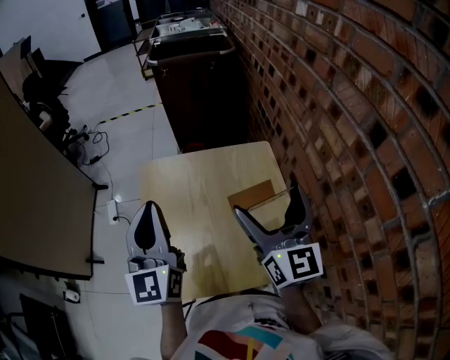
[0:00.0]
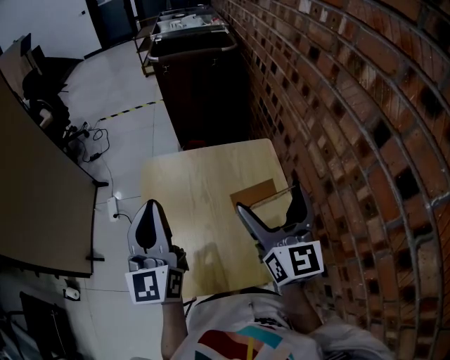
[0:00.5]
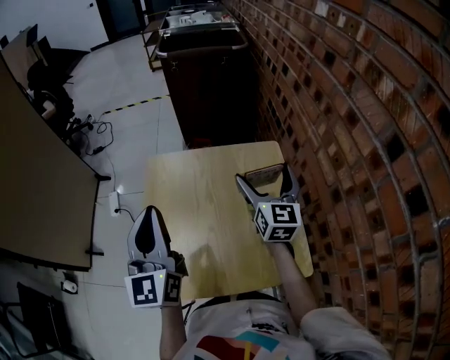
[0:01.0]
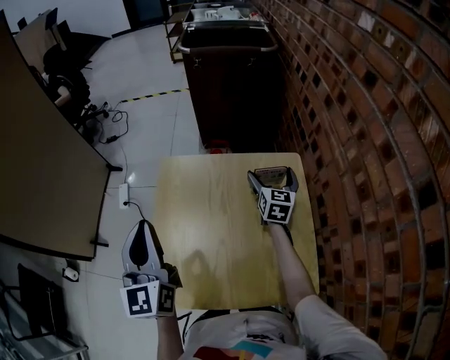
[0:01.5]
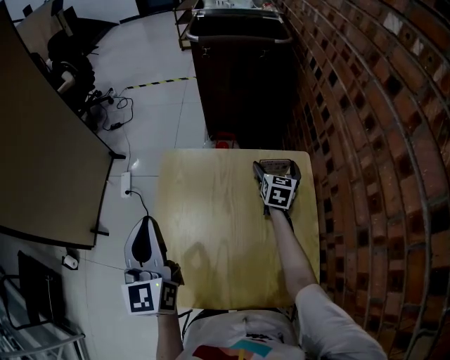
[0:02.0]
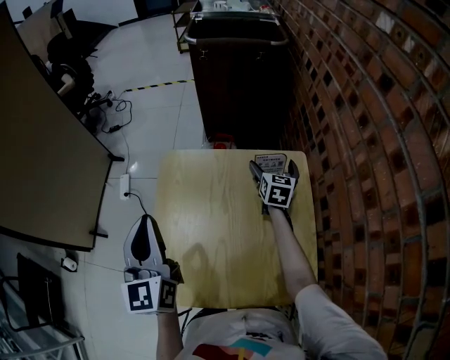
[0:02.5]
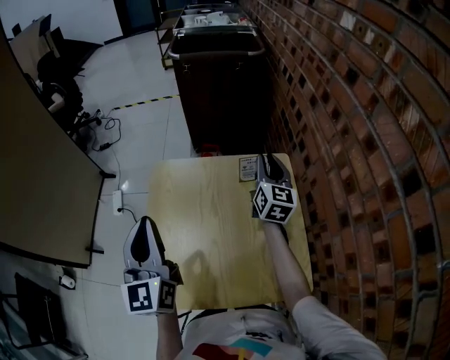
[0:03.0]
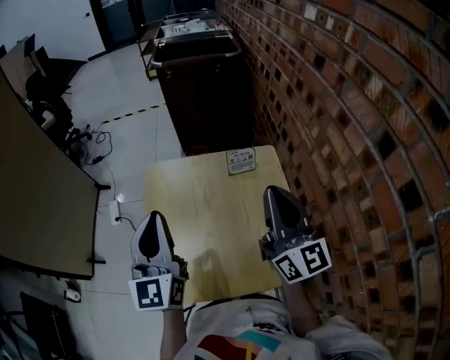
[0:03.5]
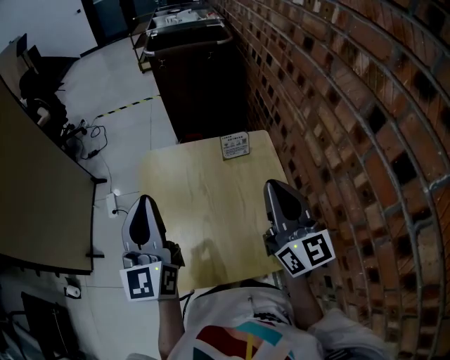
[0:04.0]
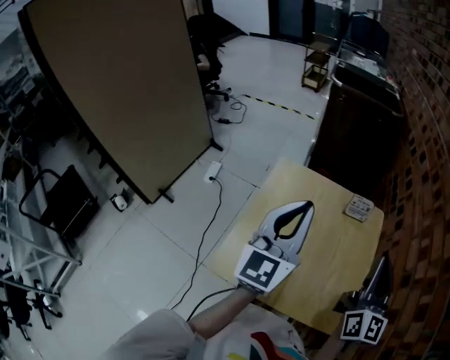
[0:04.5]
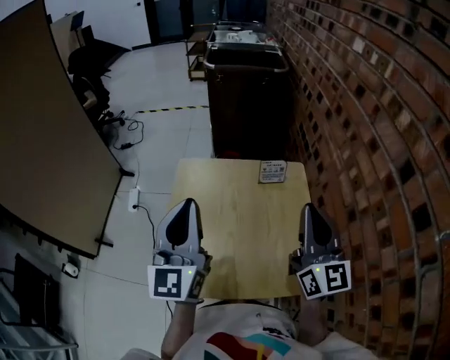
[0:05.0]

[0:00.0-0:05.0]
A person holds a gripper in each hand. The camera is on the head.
0:00.0 to 0:02.5: The left gripper travels to the left and downward by about 10 cm. Meanwhile the right gripper goes some 40 cm forward and downward, and angles its fingers downward, by approximately 30 degrees.
0:02.5 to 0:05.0: The right gripper shifts about 40 cm backward and upward, tips its fingers upward by roughly 40 degrees, and closes up, while the left gripper is displaced backward, upward and to the right by some 10 cm.

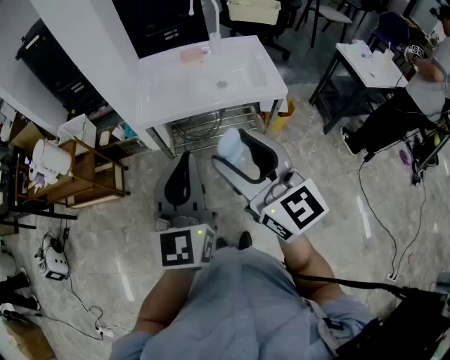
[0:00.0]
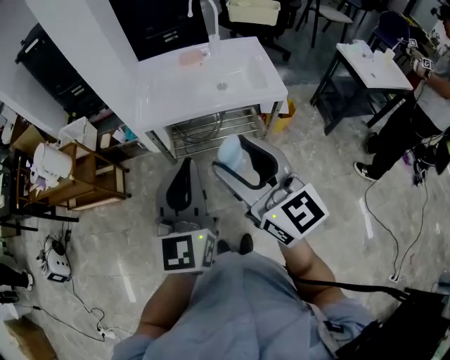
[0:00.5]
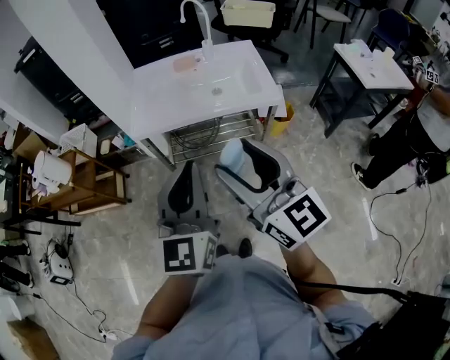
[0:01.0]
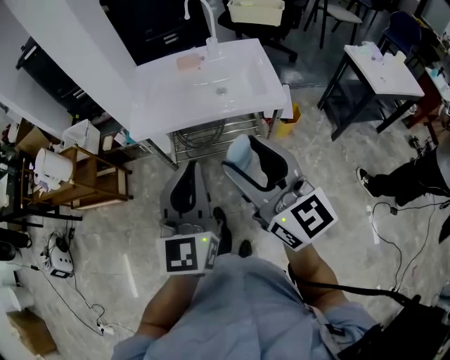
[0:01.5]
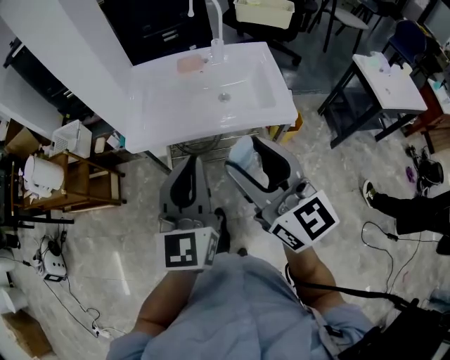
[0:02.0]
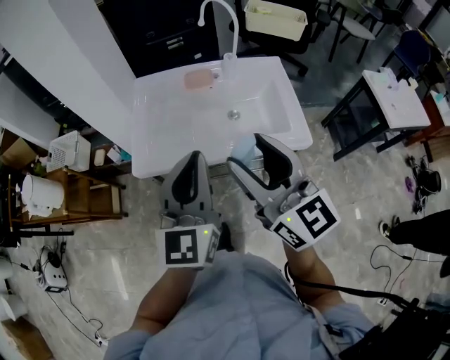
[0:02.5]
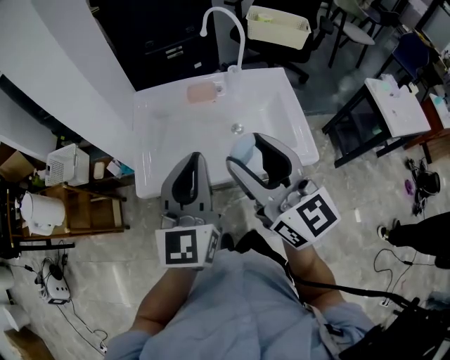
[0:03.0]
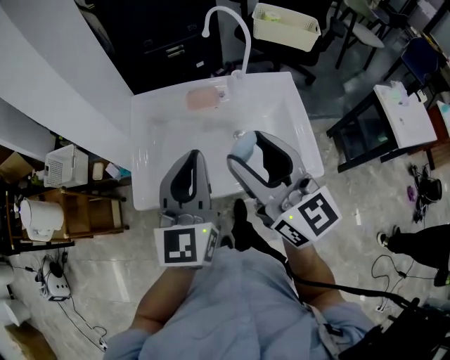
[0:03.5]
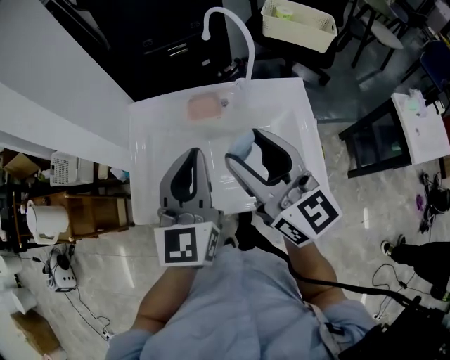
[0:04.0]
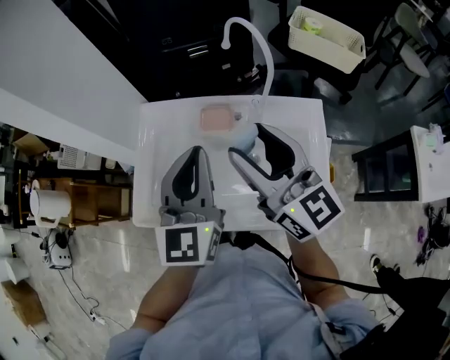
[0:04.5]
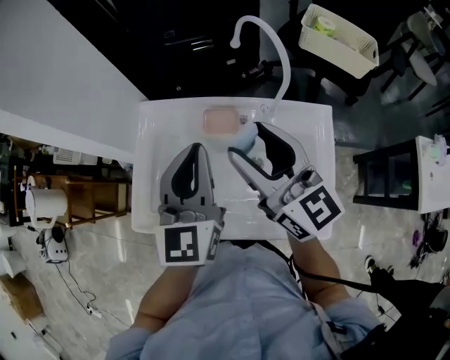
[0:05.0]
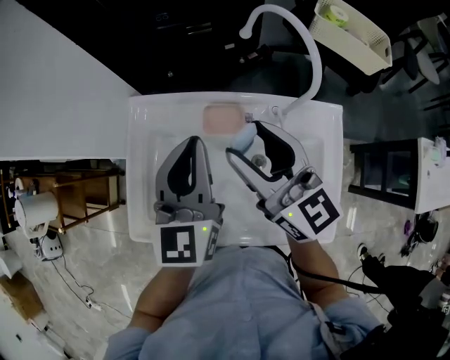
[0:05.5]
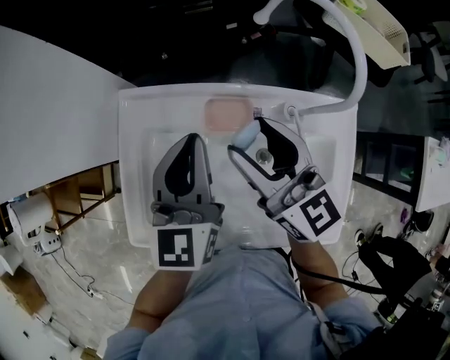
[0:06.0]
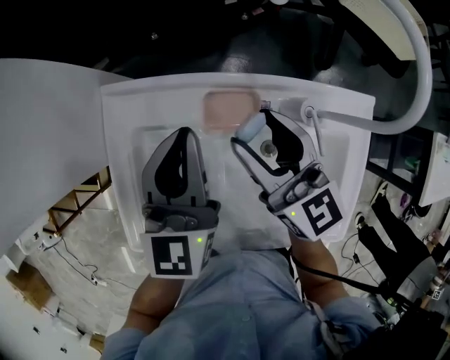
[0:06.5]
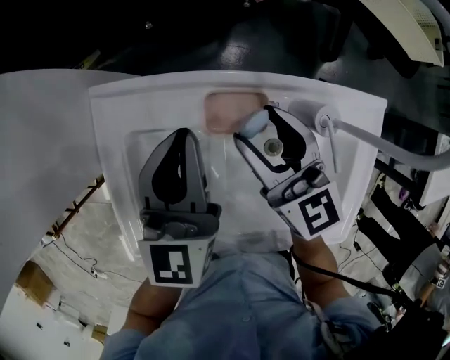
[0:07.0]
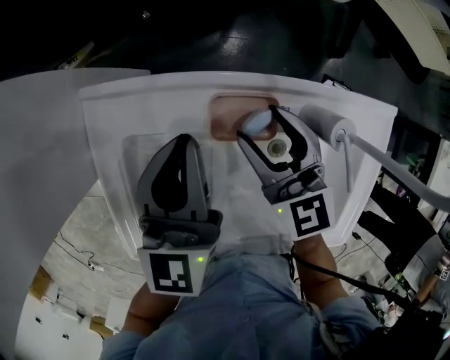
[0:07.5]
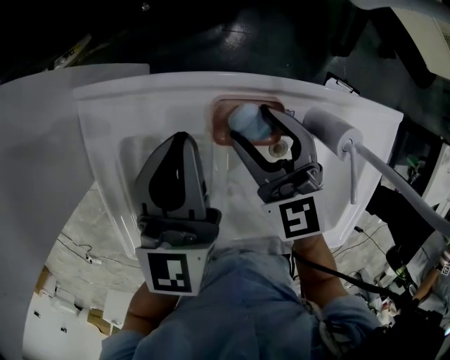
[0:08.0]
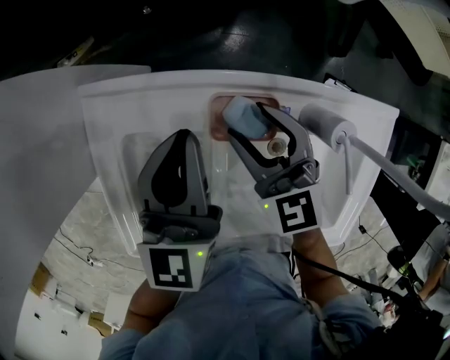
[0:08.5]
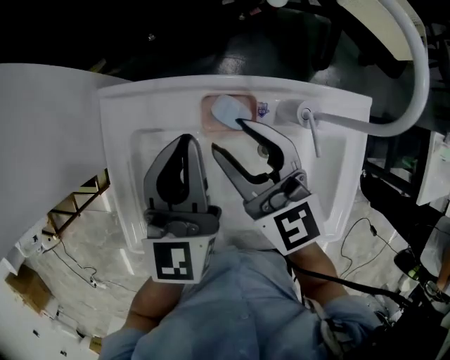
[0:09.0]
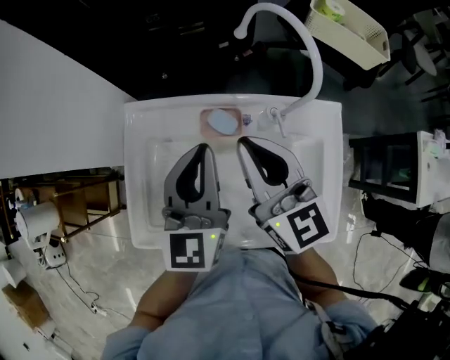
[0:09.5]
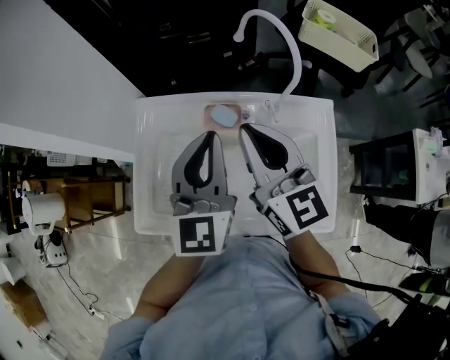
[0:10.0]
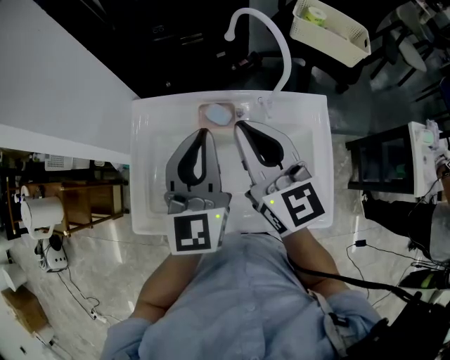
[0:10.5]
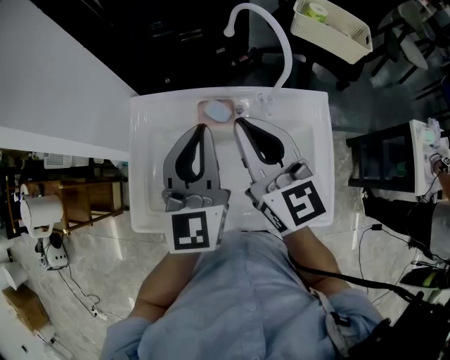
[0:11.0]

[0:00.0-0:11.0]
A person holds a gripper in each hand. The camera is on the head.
0:00.0 to 0:02.0: Both grippers travel together forward and to the right, roughly 15 cm.
0:02.0 to 0:03.5: Both grippers travel together forward, roughly 25 cm.
0:03.5 to 0:05.5: Both grippers move forward, some 25 cm.
0:05.5 to 0:07.5: Both grippers travel together downward and forward, roughly 20 cm. The right gripper changes its angle by about 20 degrees.
0:07.5 to 0:09.0: The right gripper goes about 10 cm upward. Meanwhile the left gripper moves upward, about 5 cm.
0:09.0 to 0:11.0: Both grippers travel together upward and backward, about 15 cm. The right gripper closes its fingers.

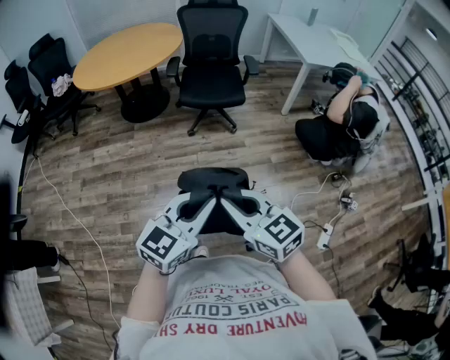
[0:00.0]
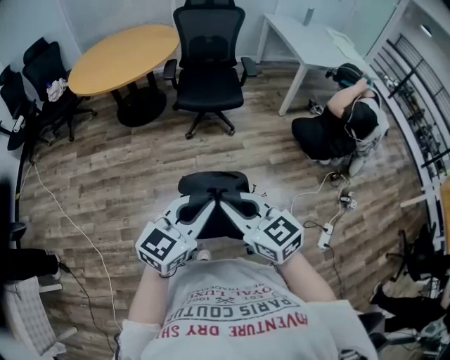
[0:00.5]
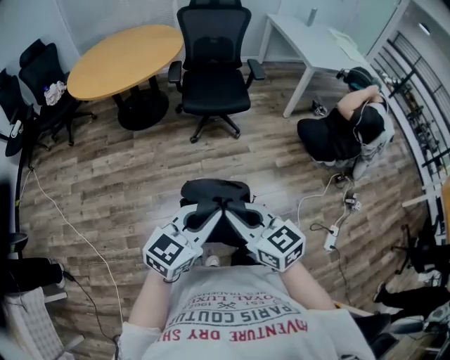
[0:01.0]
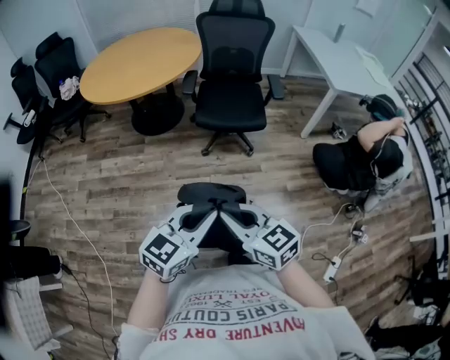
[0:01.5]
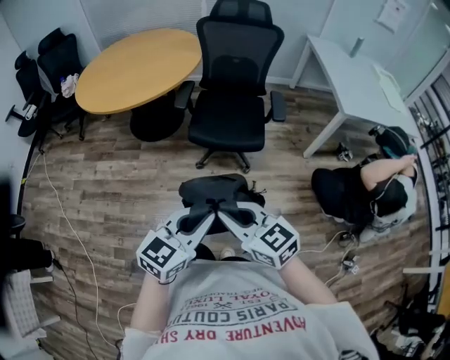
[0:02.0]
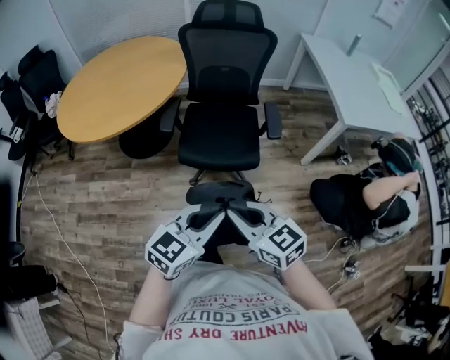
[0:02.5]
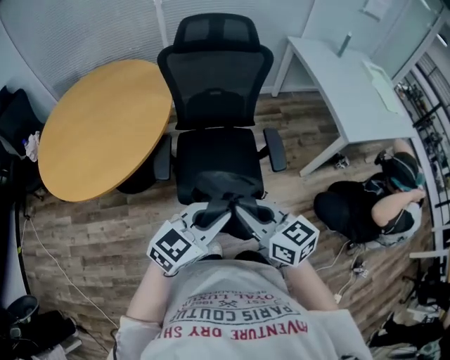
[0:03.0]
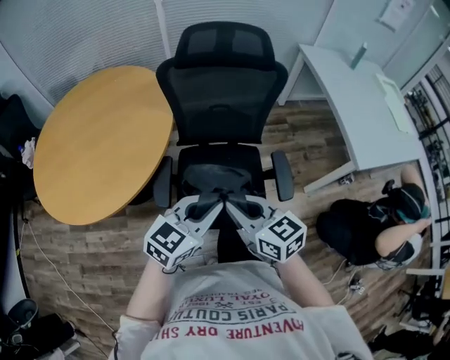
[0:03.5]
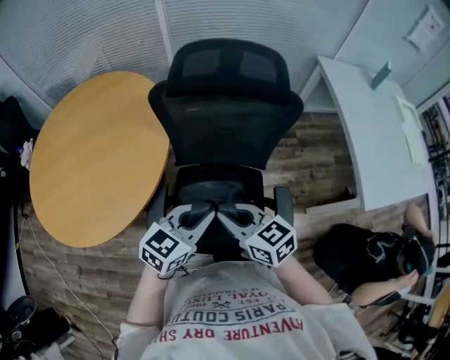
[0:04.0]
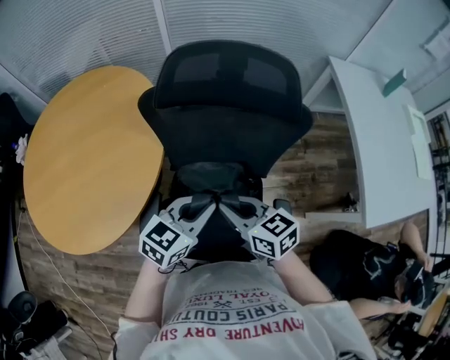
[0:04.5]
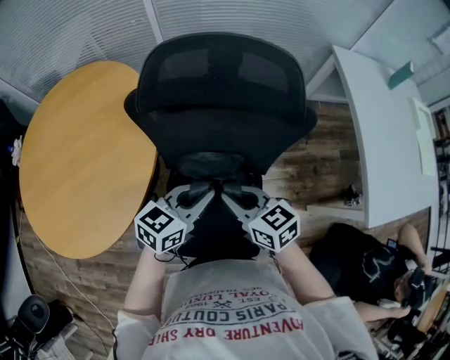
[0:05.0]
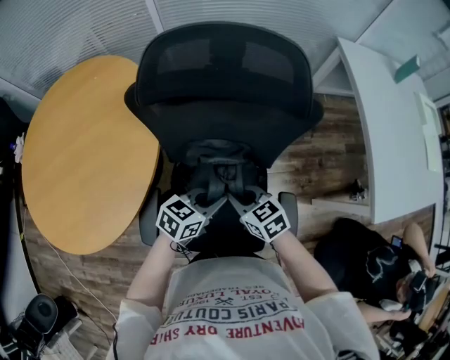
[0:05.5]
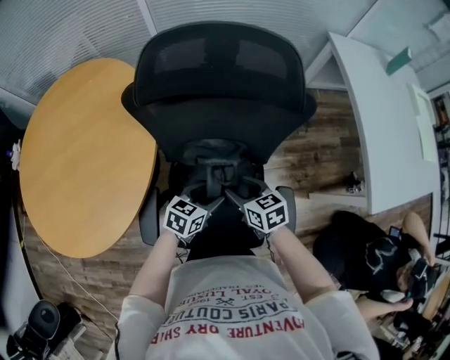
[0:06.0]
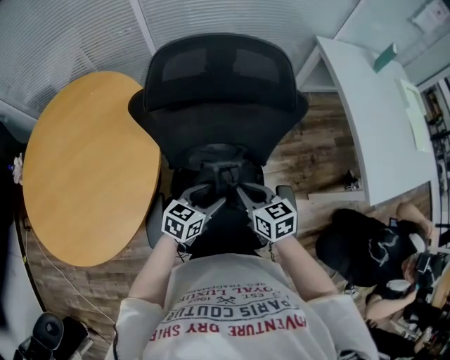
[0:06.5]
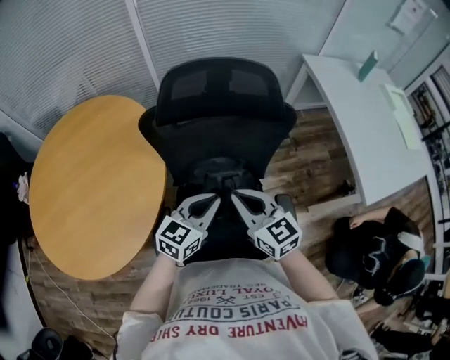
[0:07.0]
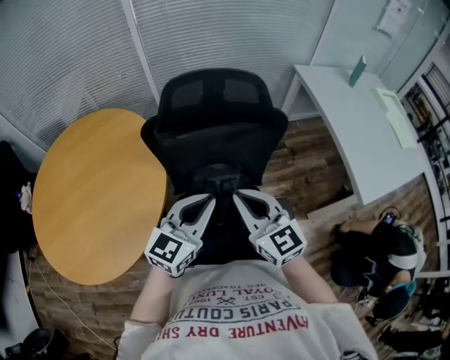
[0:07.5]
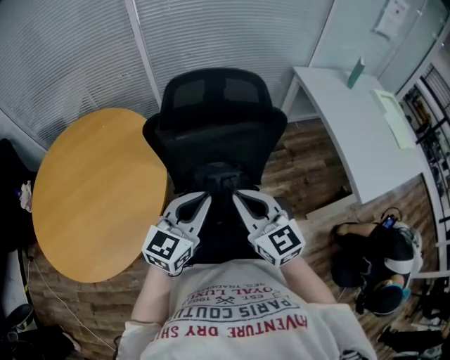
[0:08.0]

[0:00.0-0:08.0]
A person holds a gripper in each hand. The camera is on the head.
0:00.0 to 0:02.0: The two grippers go some 30 cm forward.
0:02.0 to 0:04.0: The two grippers travel together, forward, about 60 cm.
0:04.0 to 0:06.0: The grippers both shift downward and forward by about 20 cm. The left gripper swivels roughly 20 degrees, and opens. Meanwhile the right gripper rotates approximately 20 degrees, and opens.
0:06.0 to 0:08.0: The grippers both shift upward by about 25 cm. The left gripper swivels about 40 degrees, and closes up. Meanwhile the right gripper tips its fingers upward by approximately 30 degrees, and closes its fingers.

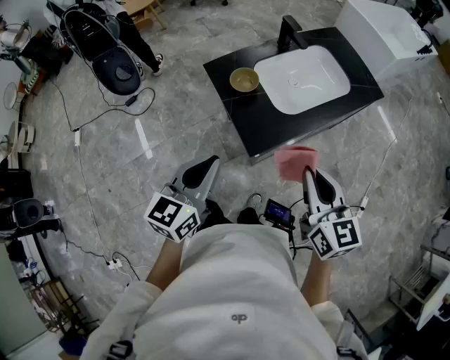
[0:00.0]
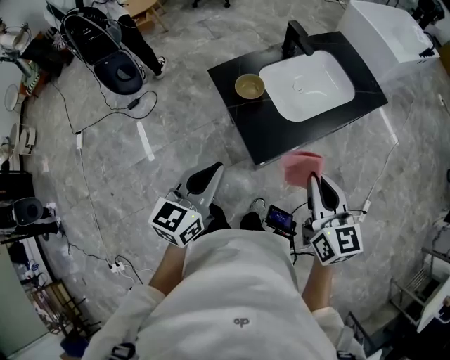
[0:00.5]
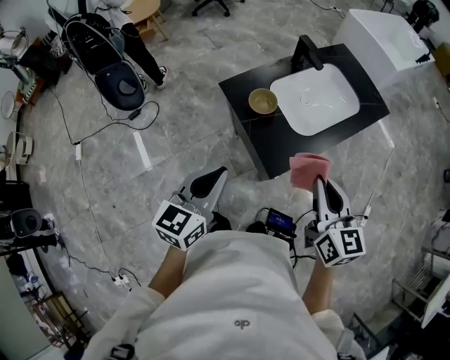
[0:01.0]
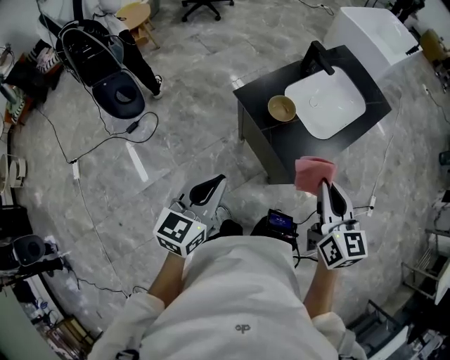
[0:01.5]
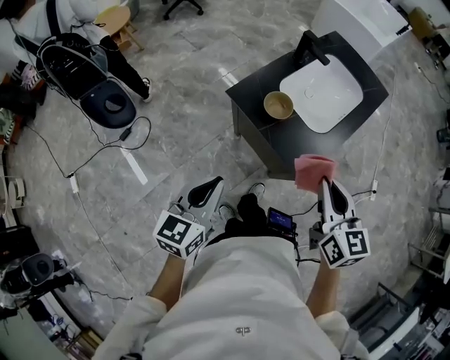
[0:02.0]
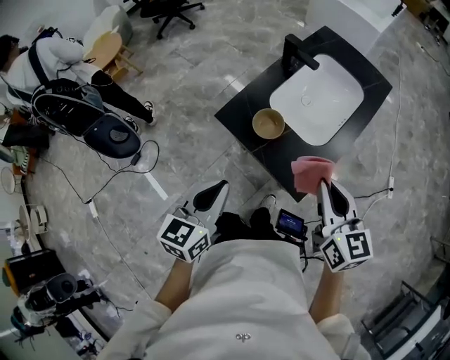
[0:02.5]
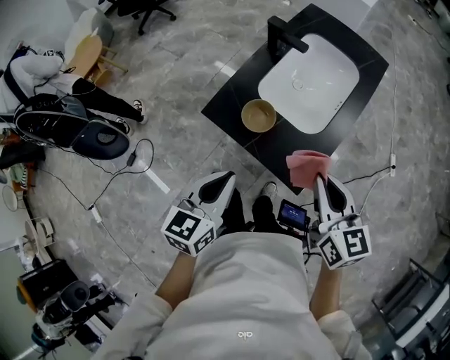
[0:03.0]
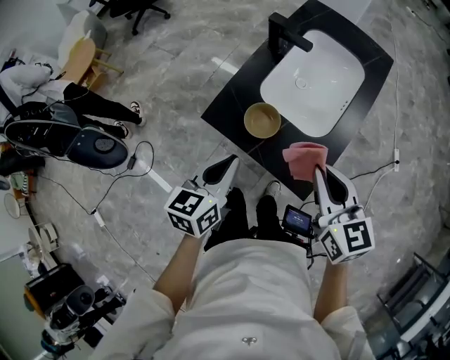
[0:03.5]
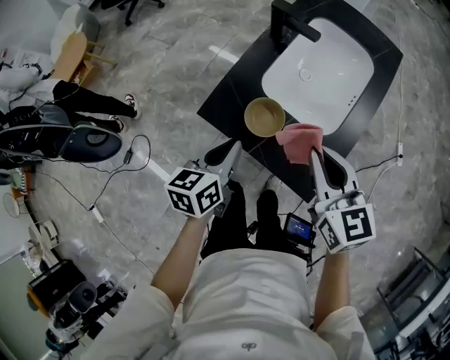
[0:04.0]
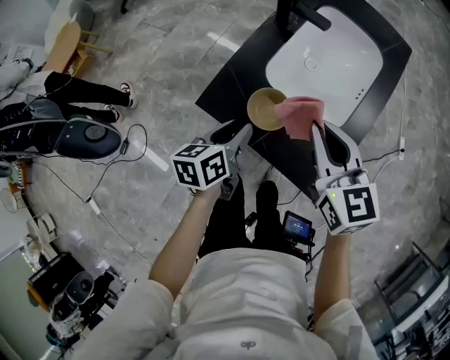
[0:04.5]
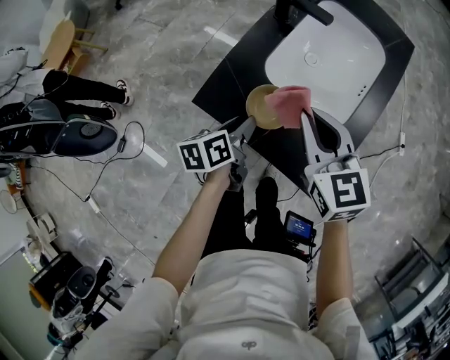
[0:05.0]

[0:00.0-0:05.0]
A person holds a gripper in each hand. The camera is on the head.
0:00.0 to 0:02.5: Both grippers travel together to the left and forward, about 20 cm. The right gripper turns by approximately 20 degrees.
0:02.5 to 0:05.0: The right gripper goes roughly 25 cm forward, downward and to the left. Meanwhile the left gripper shifts some 30 cm downward and forward, rotates roughly 40 degrees, and opens up.
